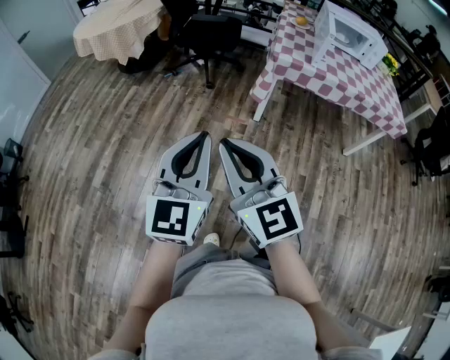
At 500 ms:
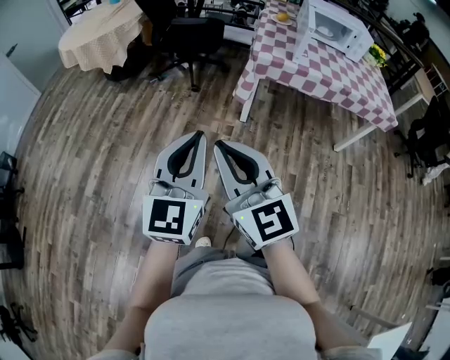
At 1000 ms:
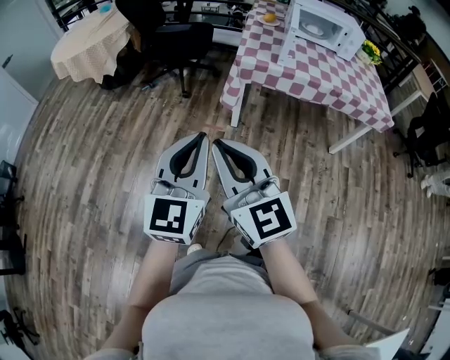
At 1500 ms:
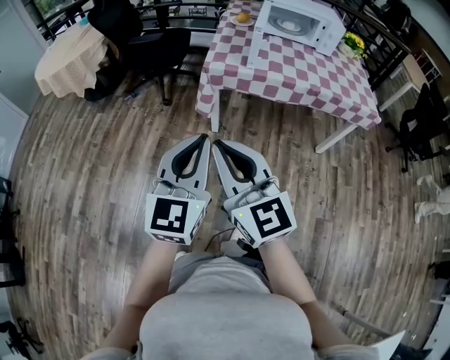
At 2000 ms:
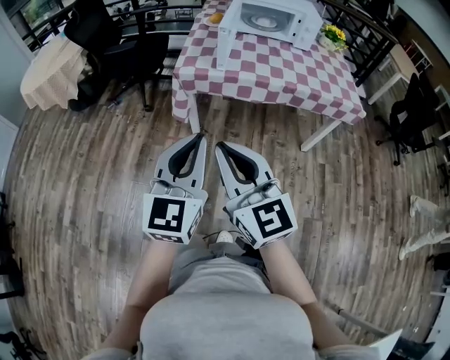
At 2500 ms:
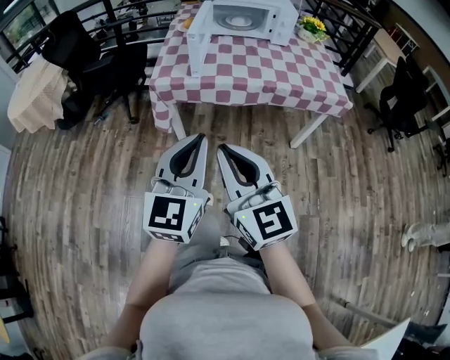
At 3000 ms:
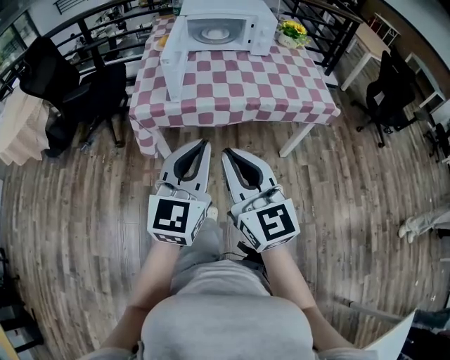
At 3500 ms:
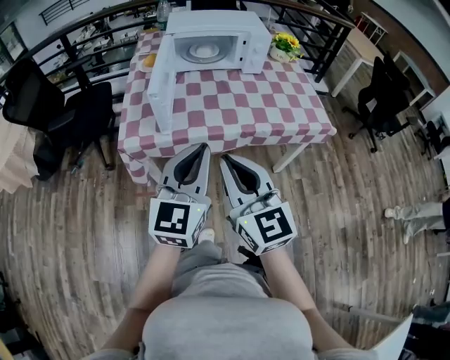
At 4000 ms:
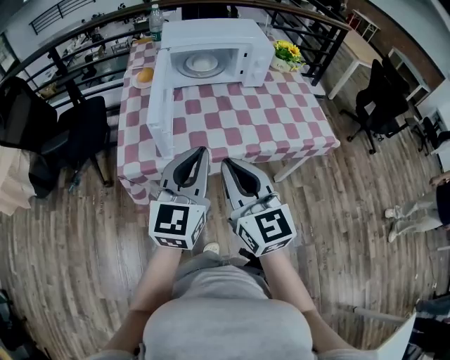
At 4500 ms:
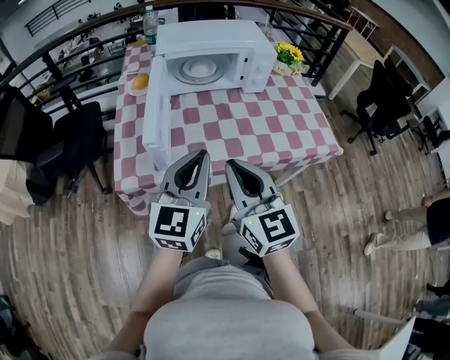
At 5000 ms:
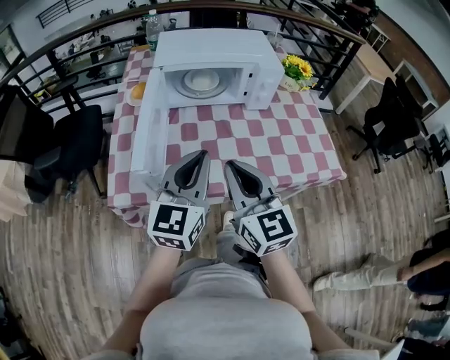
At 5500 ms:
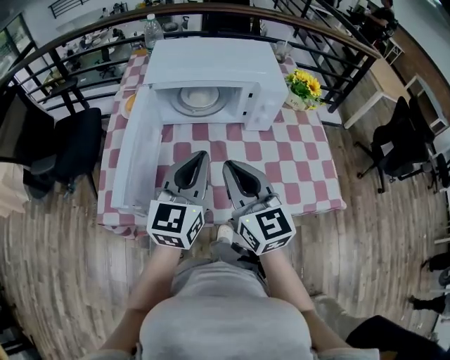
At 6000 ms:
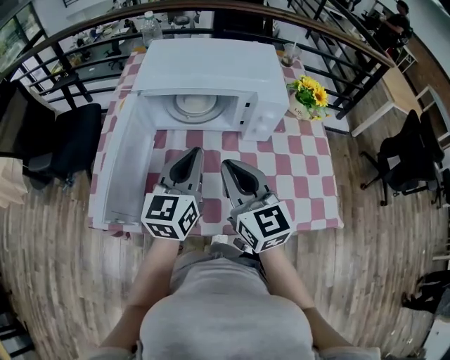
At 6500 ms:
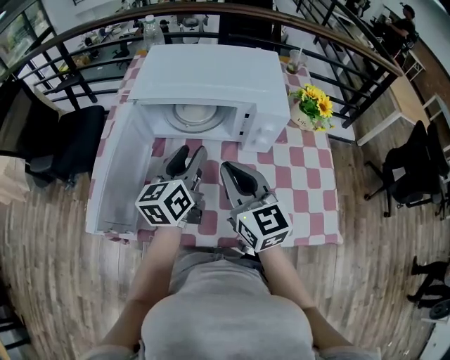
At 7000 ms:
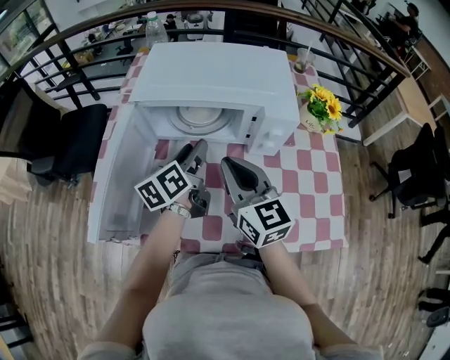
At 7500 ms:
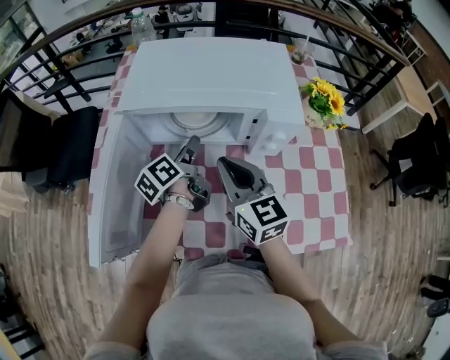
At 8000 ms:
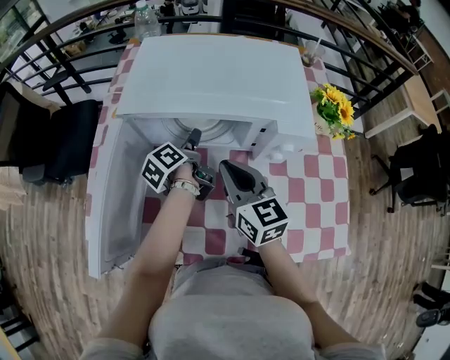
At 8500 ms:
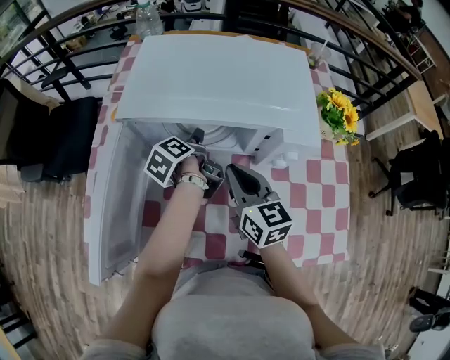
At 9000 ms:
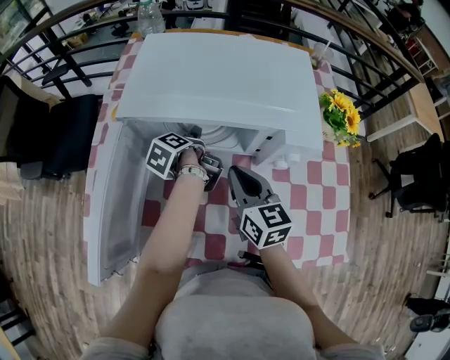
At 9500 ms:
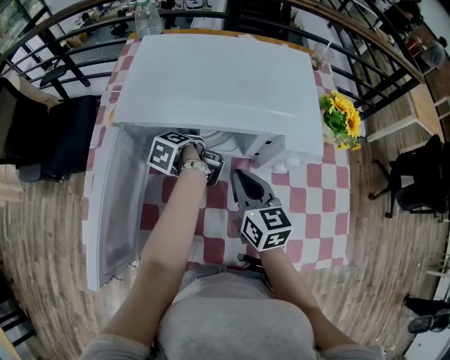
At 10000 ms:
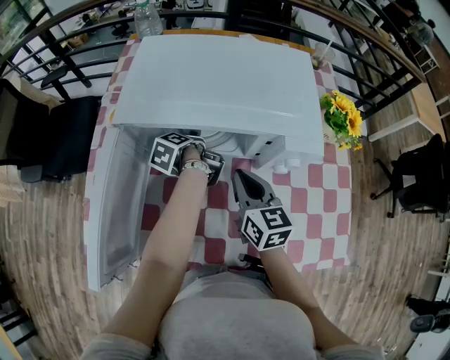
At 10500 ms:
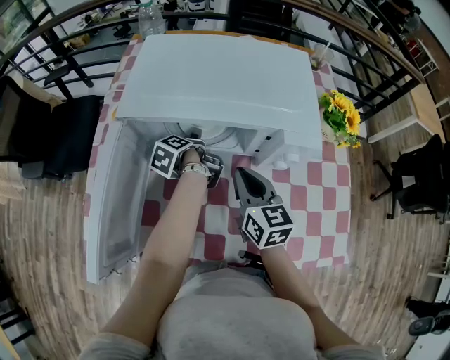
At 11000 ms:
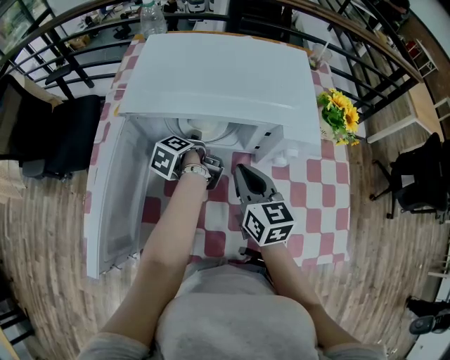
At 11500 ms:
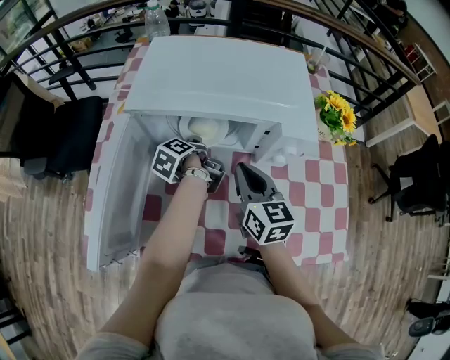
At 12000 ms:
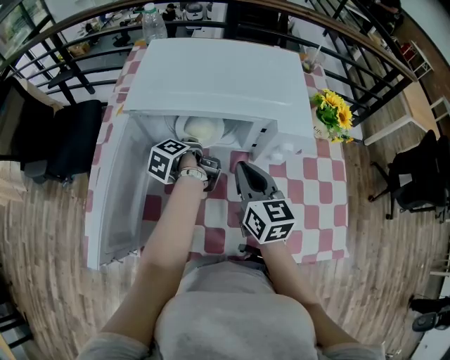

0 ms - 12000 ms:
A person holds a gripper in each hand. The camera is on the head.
0 ms - 2000 ms: The two grippers travel together, to the right, about 40 cm.
2000 ms - 4000 ms: The grippers both shift forward by roughly 35 cm. The right gripper changes its angle by about 20 degrees.
4000 ms - 6000 ms: Both grippers travel together forward, approximately 30 cm.
6000 ms - 8000 ms: The right gripper heads forward and downward, covering some 15 cm. The left gripper travels forward and downward by about 25 cm, rolls counterclockwise, seen from behind, by approximately 60 degrees, and opens up.
8000 ms - 10000 ms: Both grippers move downward, about 5 cm. The left gripper turns by some 30 degrees.
10000 ms - 12000 ms: The left gripper ends up roughly 5 cm from where it was, and closes.

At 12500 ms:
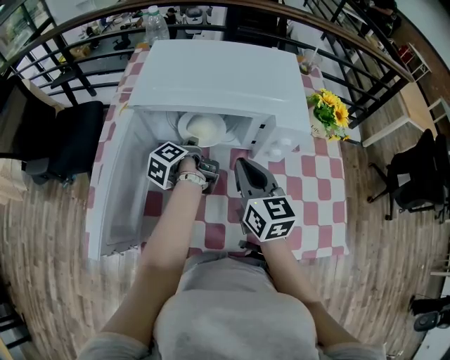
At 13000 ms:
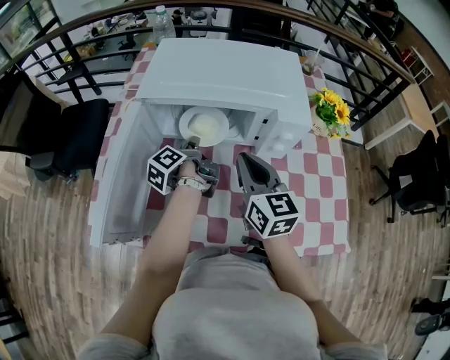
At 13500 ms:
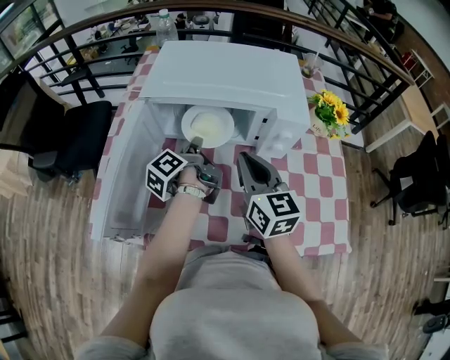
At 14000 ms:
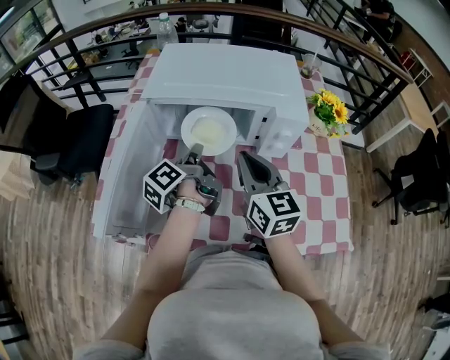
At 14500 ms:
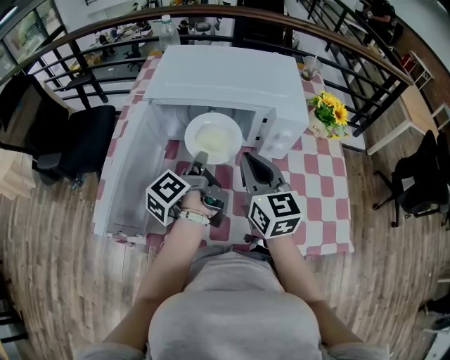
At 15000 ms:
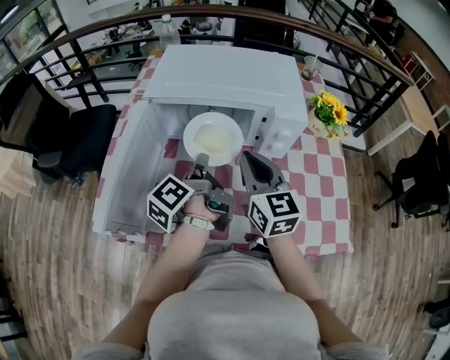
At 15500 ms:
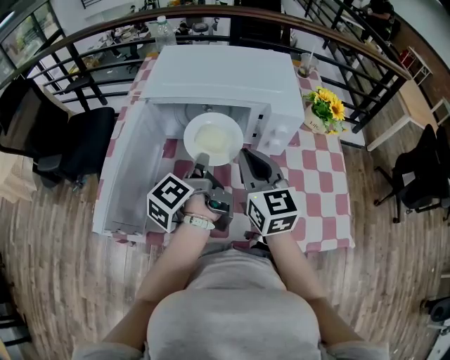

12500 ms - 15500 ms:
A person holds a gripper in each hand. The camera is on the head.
12500 ms - 14000 ms: The left gripper shifts roughly 10 cm upward and backward.
14000 ms - 15500 ms: The left gripper travels backward by roughly 5 cm.

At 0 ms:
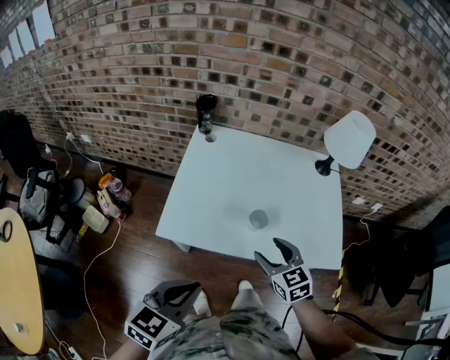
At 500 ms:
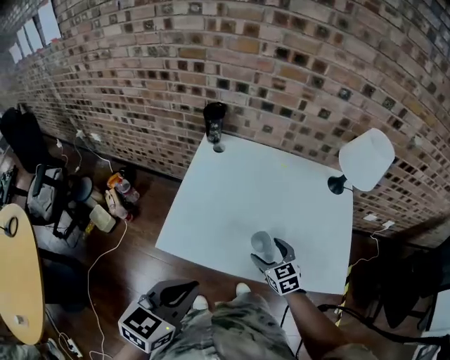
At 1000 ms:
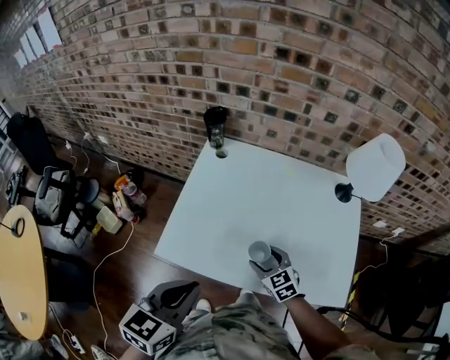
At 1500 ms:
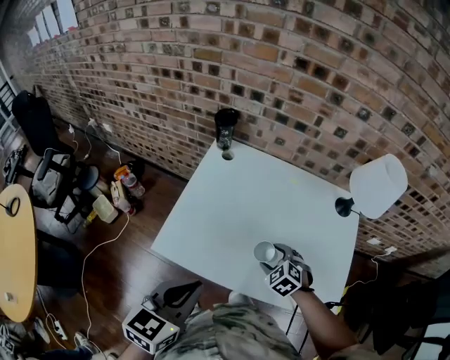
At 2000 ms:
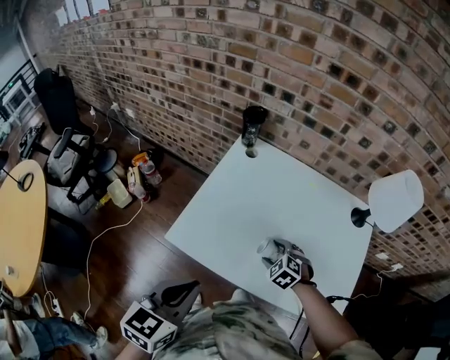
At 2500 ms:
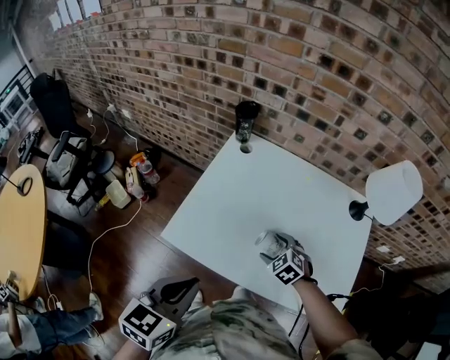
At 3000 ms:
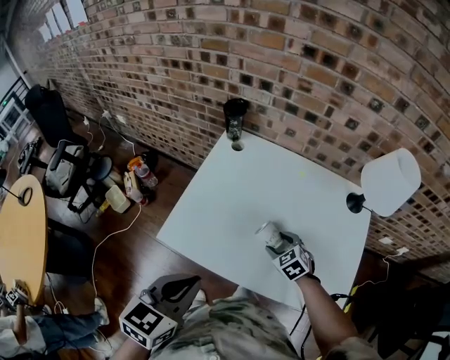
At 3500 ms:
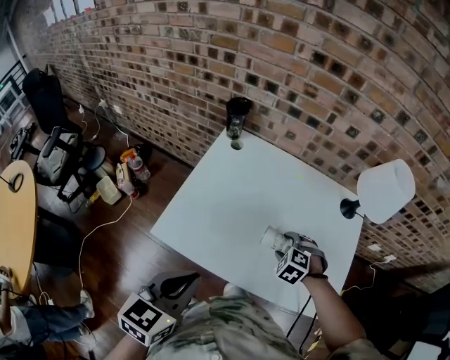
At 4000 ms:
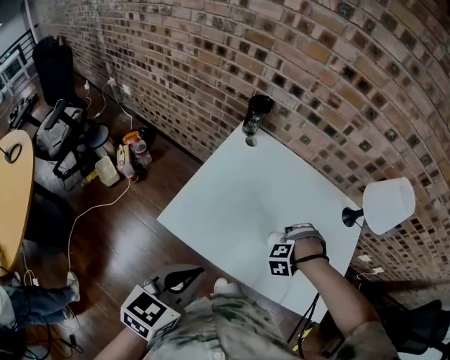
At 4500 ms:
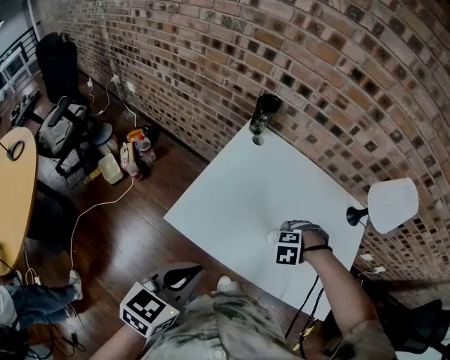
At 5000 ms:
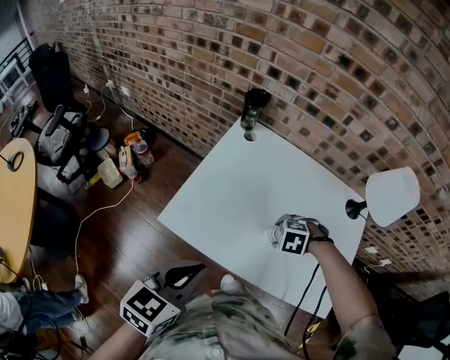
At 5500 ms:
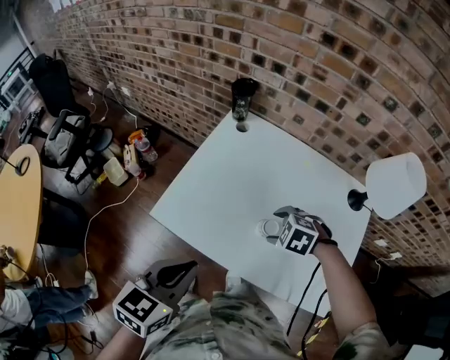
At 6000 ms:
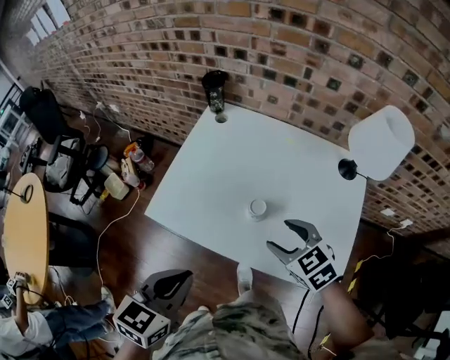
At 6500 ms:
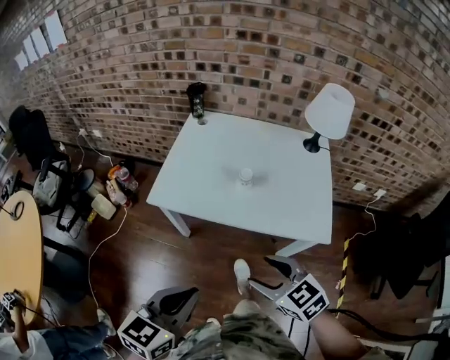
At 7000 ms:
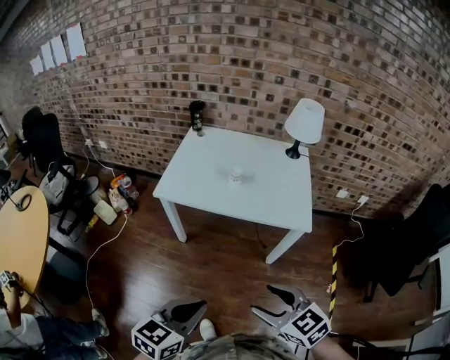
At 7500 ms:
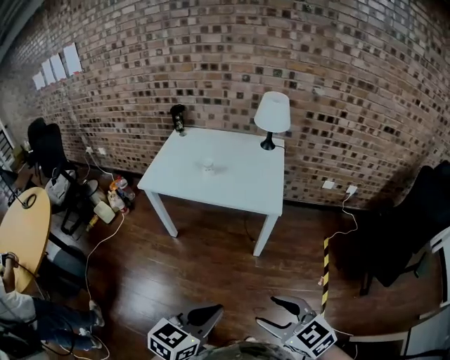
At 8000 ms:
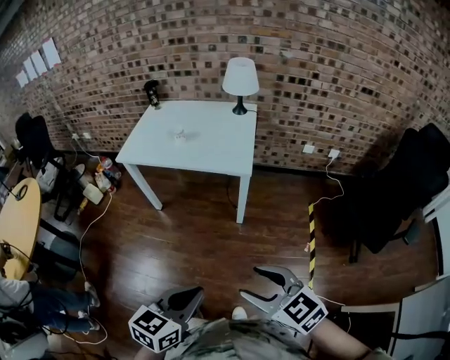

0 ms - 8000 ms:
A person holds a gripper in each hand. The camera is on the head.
0 ms - 2000 ms: The right gripper travels downward and forward by about 20 cm, and changes its angle by about 50 degrees; the left gripper heads forward, covering some 10 cm, and turns by approximately 20 degrees.
2000 ms - 4000 ms: The right gripper moves approximately 10 cm, and changes its angle by some 60 degrees.
4000 ms - 6000 ms: The left gripper ends up approximately 10 cm from where it was. The right gripper travels upward by roughly 10 cm, and rotates some 90 degrees.
6000 ms - 8000 ms: Both grippers are carried backward, about 70 cm.

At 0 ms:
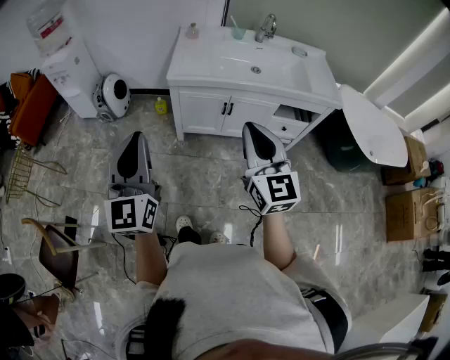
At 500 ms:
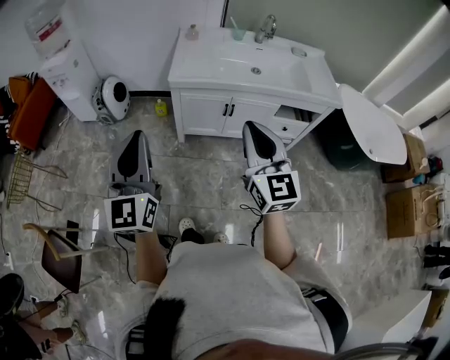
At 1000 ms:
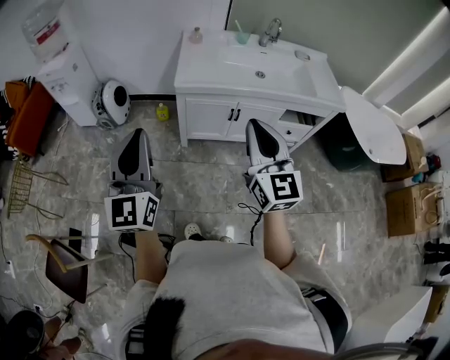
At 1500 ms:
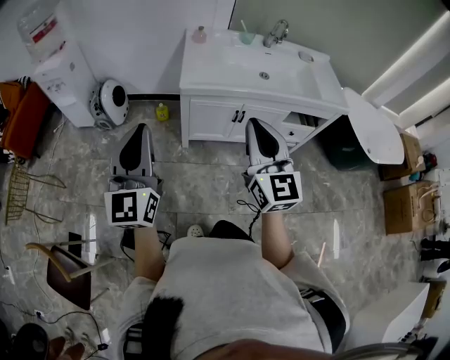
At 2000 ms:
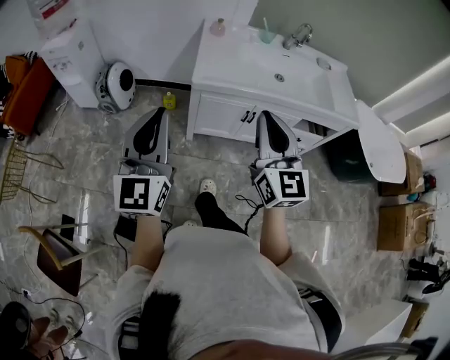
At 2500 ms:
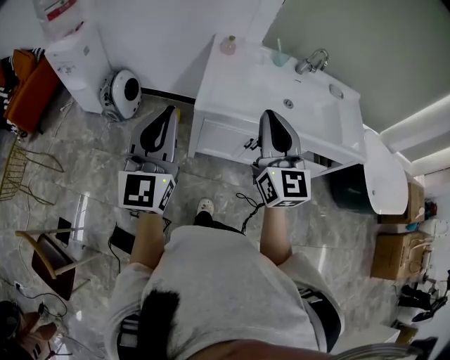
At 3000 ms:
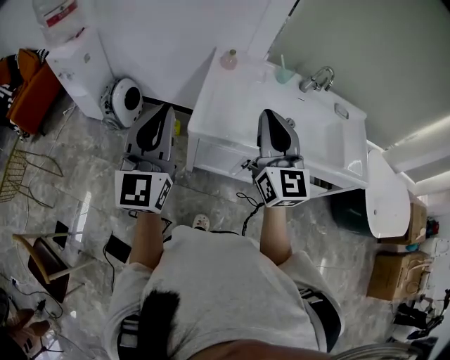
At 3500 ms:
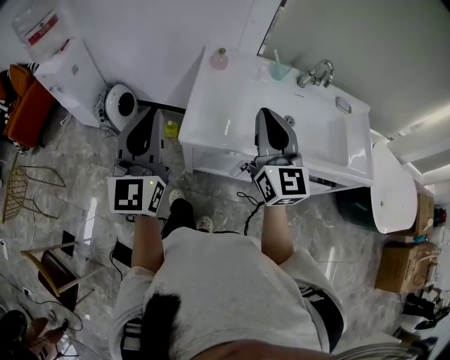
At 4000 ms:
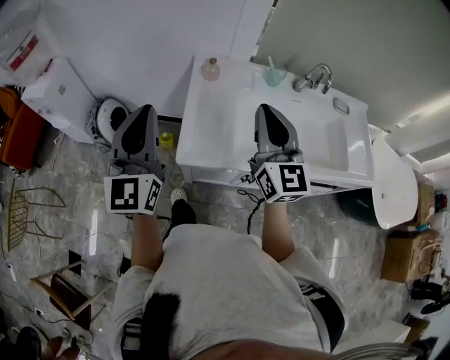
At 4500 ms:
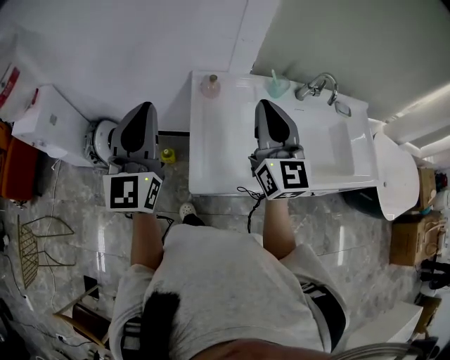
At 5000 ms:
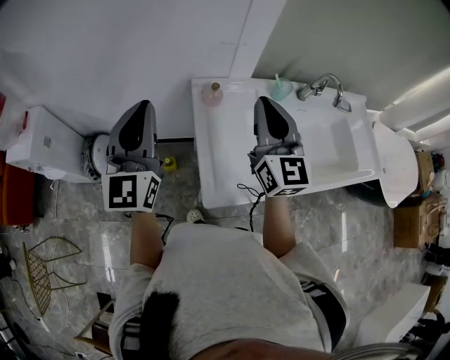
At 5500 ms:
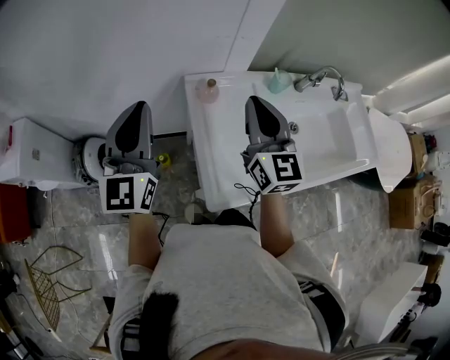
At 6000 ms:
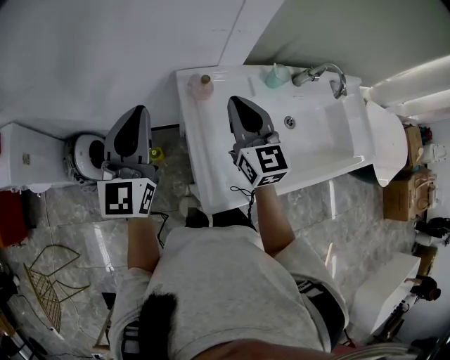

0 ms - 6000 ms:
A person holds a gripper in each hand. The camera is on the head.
0 ms - 2000 ms: The two grippers go about 15 cm forward and to the left.
2000 ms - 4000 ms: Both grippers move forward, roughly 35 cm.
4000 ms - 6000 ms: The right gripper heads forward and to the left, covering roughly 25 cm, while the left gripper travels forward by some 25 cm.
